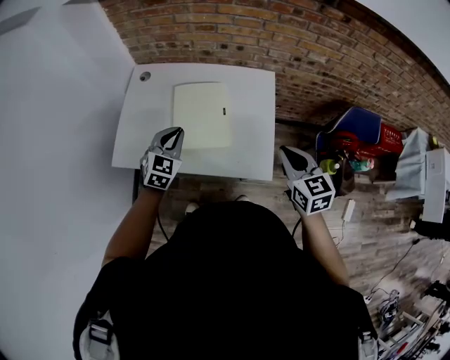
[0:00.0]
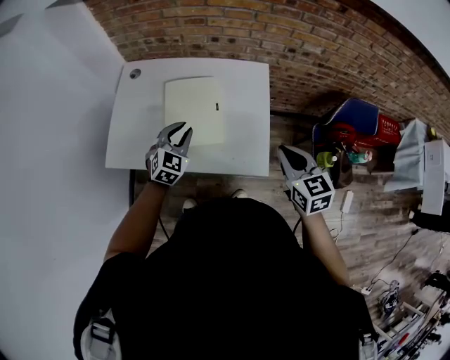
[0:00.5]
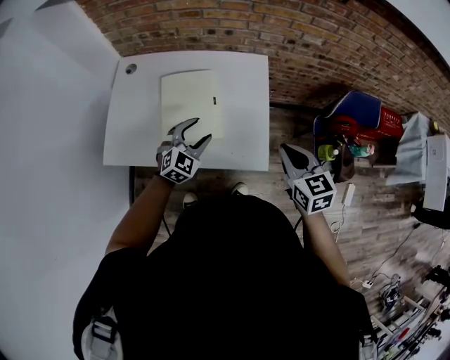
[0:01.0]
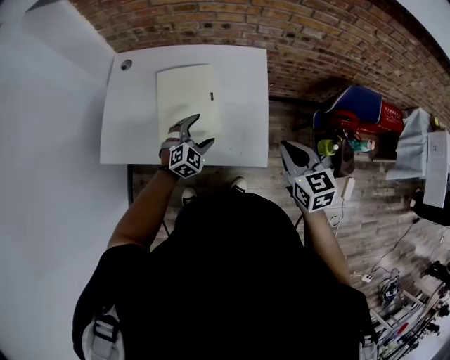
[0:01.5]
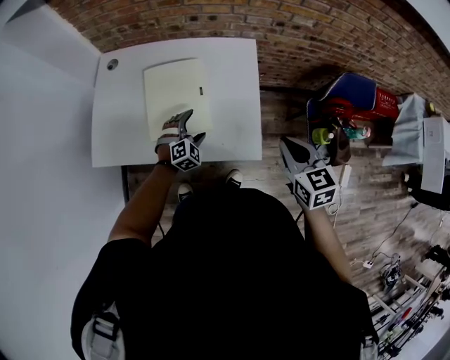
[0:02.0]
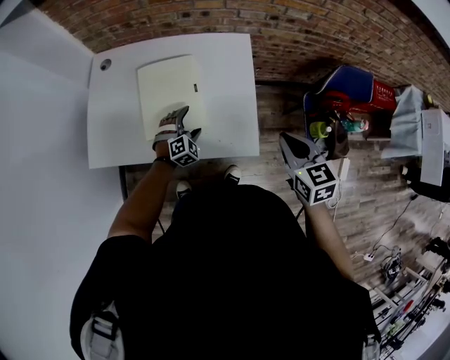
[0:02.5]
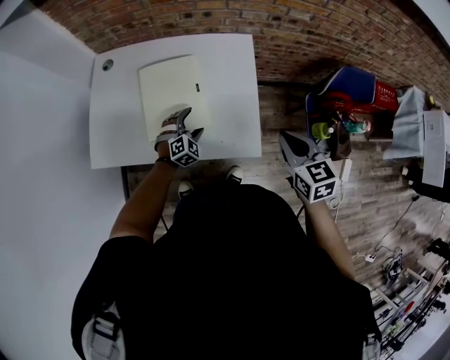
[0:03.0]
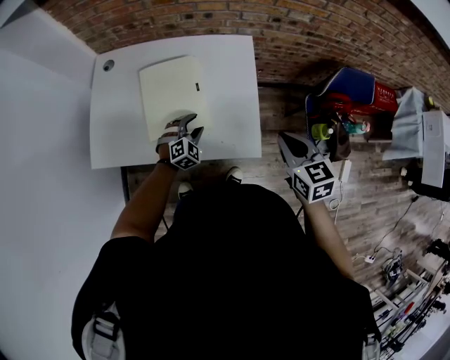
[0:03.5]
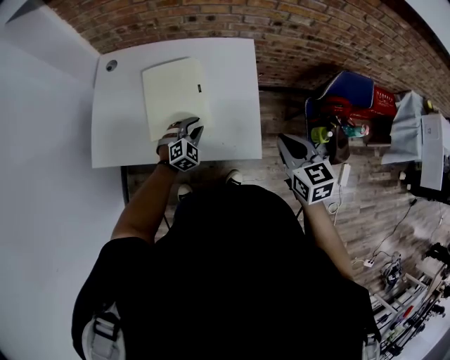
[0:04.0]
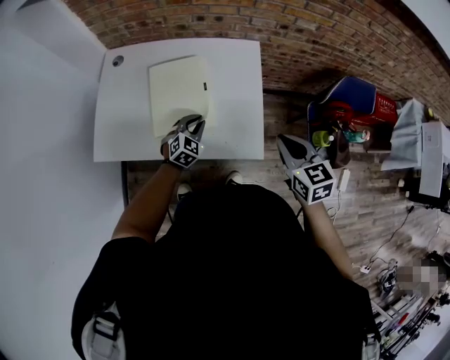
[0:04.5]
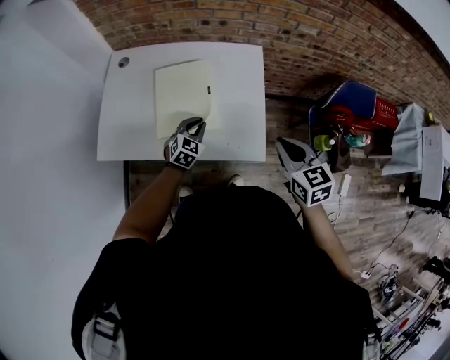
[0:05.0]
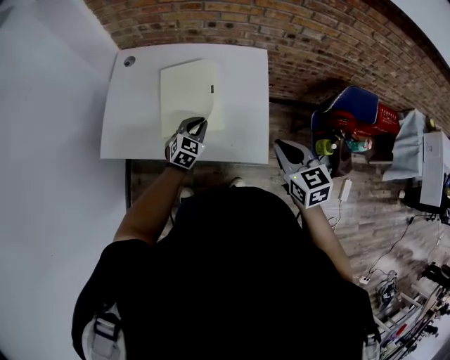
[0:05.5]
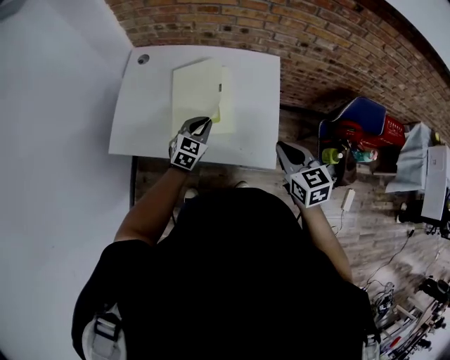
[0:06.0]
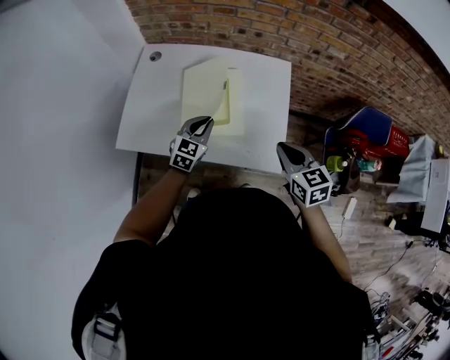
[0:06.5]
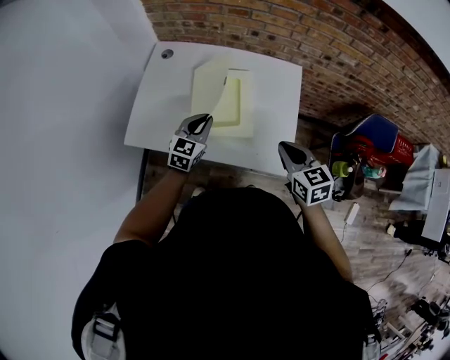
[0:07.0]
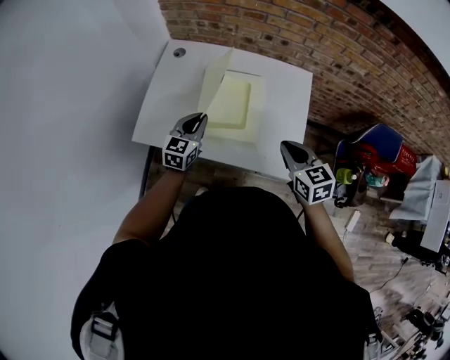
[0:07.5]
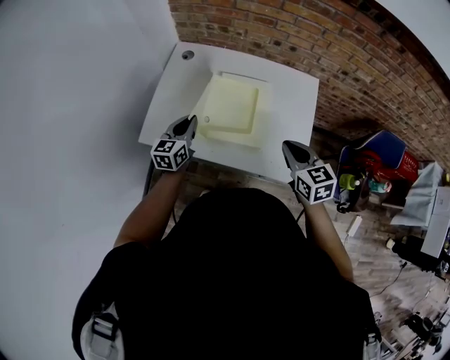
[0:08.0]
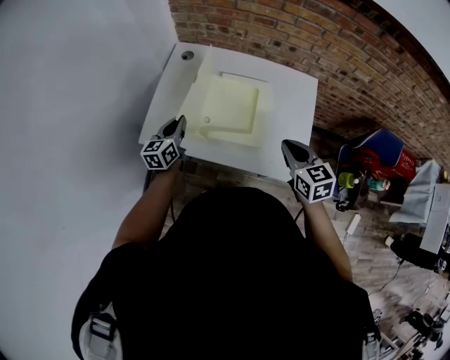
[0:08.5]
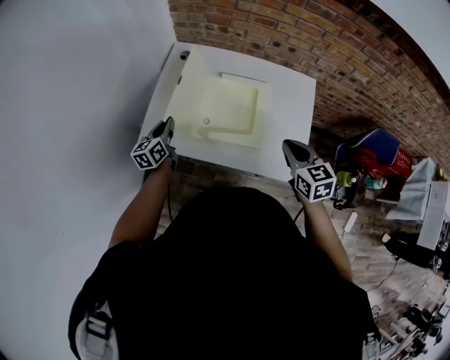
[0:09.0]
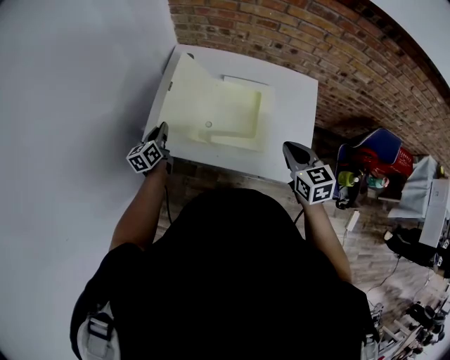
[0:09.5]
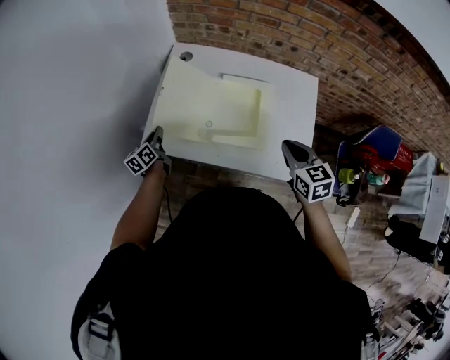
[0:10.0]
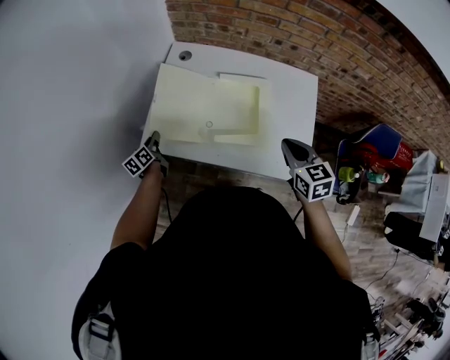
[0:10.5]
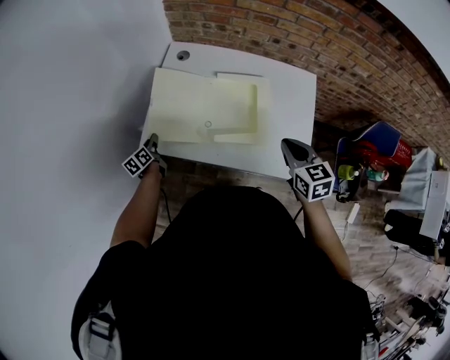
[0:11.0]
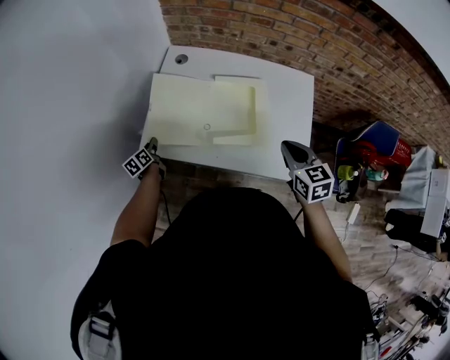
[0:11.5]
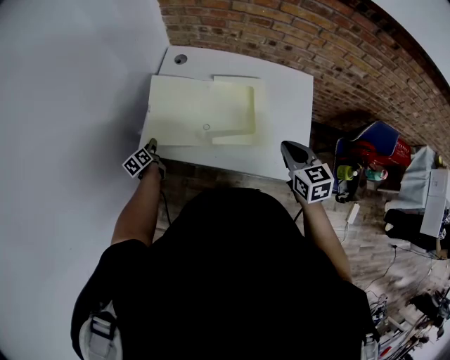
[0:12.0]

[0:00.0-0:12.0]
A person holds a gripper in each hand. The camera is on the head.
0:00.0 to 0:02.0: The left gripper travels downward and to the right by roughly 25 cm, swivels some 30 degrees, and opens up; the right gripper heads to the right, covering roughly 5 cm.
0:02.0 to 0:04.0: The left gripper closes up.
0:04.0 to 0:06.0: The left gripper shifts approximately 10 cm upward and to the left, and rotates some 30 degrees, while the right gripper travels to the left by approximately 5 cm.
0:06.0 to 0:08.0: The left gripper shifts roughly 20 cm to the left, and swivels about 30 degrees, while the right gripper travels to the left and forward by roughly 10 cm.
0:08.0 to 0:10.0: The left gripper is displaced to the left and downward by some 20 cm, and turns by roughly 30 degrees.
0:10.0 to 0:12.0: The left gripper moves downward, approximately 10 cm.

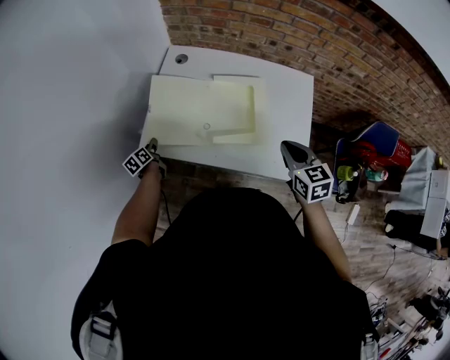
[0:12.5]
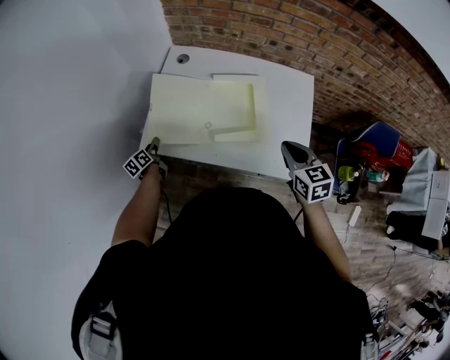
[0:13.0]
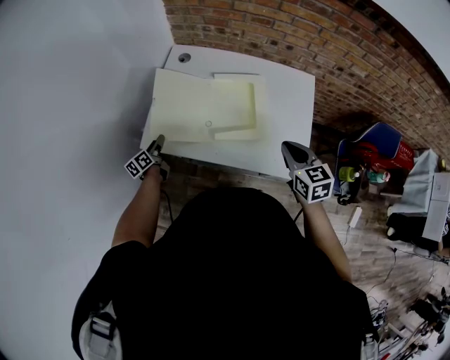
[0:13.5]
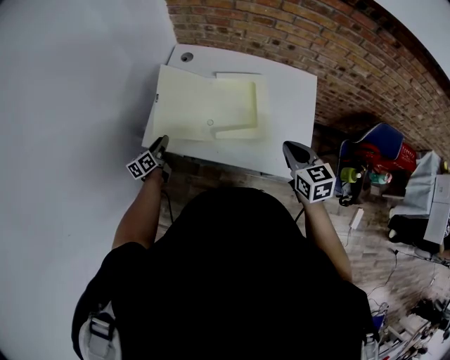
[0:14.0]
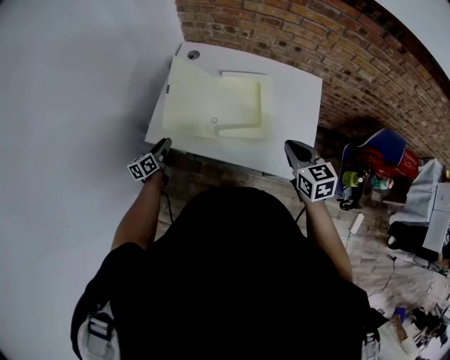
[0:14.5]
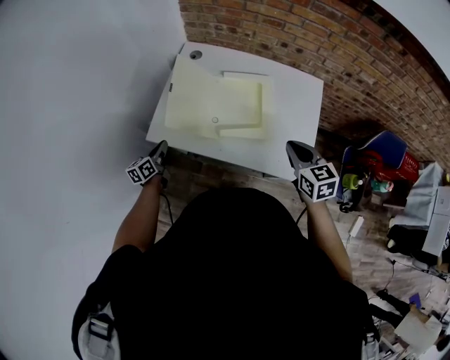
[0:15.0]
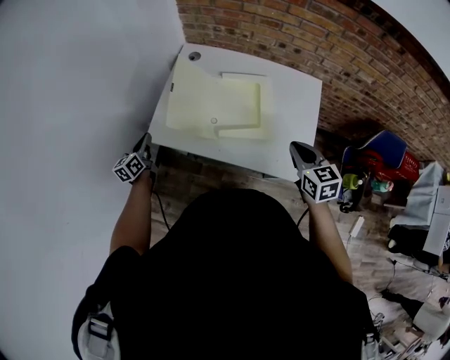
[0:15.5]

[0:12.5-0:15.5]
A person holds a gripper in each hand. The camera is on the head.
0:12.5 to 0:14.0: The left gripper shifts roughly 5 cm upward and to the right.
0:14.0 to 0:15.5: The left gripper shifts some 10 cm upward and to the left.

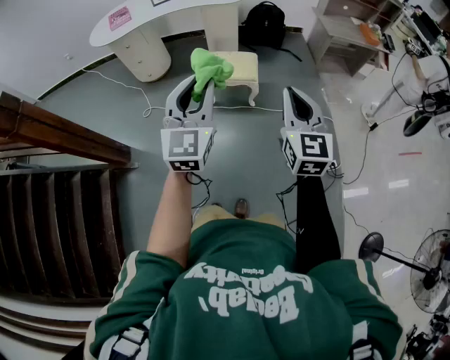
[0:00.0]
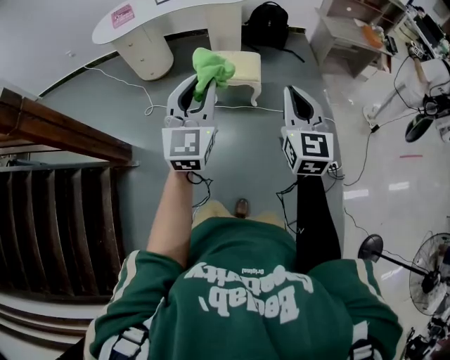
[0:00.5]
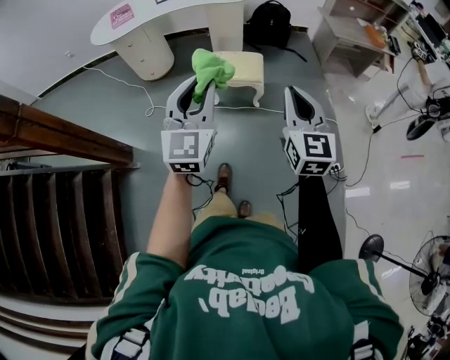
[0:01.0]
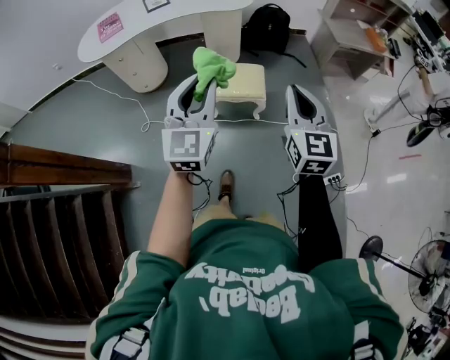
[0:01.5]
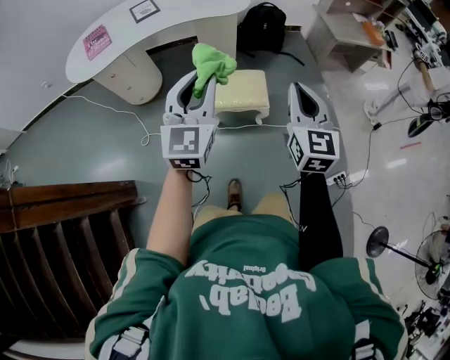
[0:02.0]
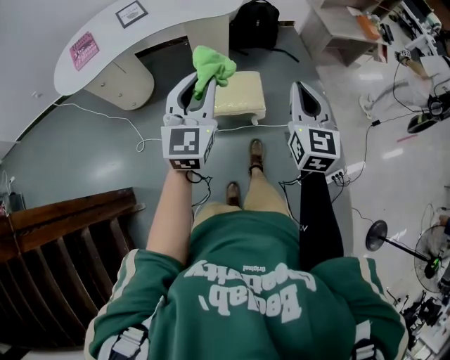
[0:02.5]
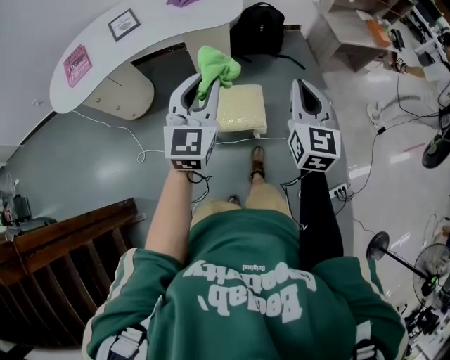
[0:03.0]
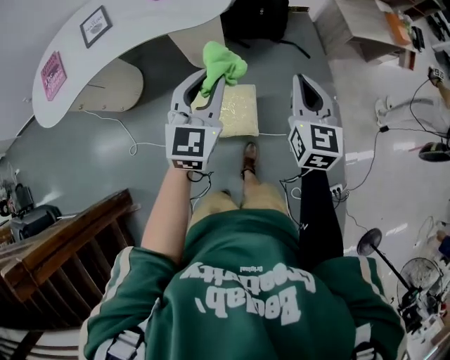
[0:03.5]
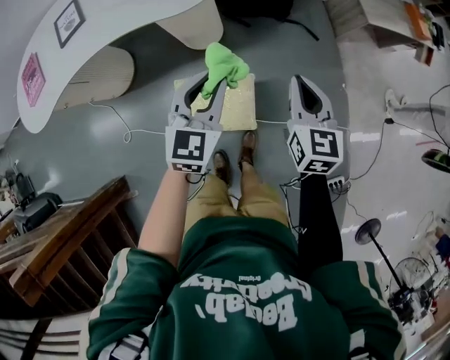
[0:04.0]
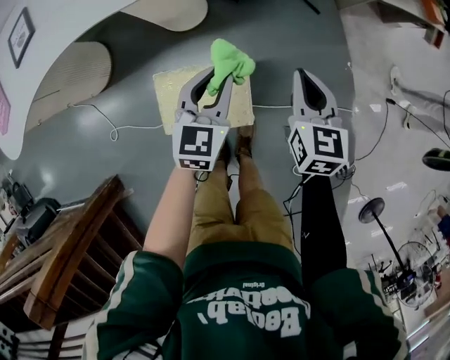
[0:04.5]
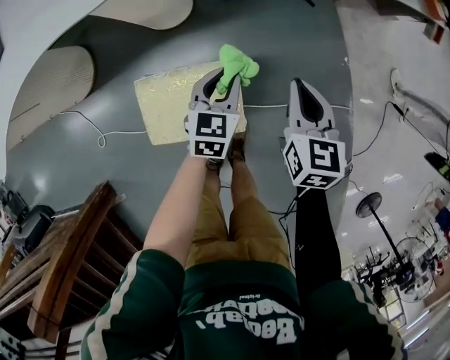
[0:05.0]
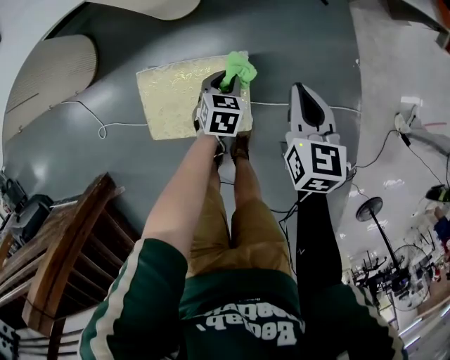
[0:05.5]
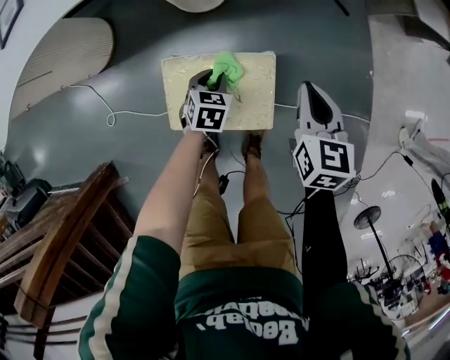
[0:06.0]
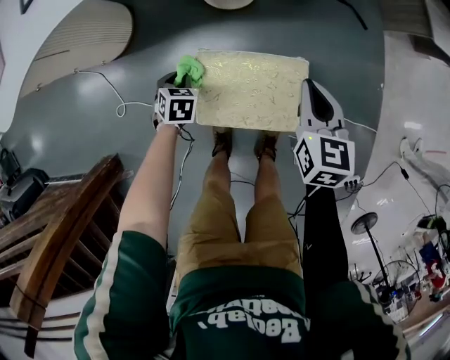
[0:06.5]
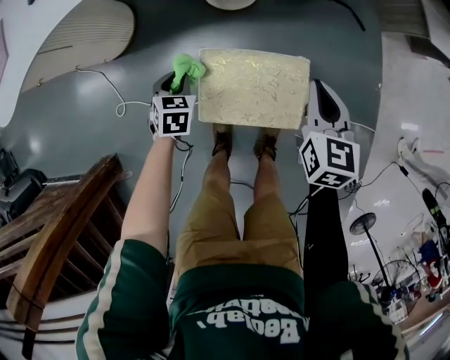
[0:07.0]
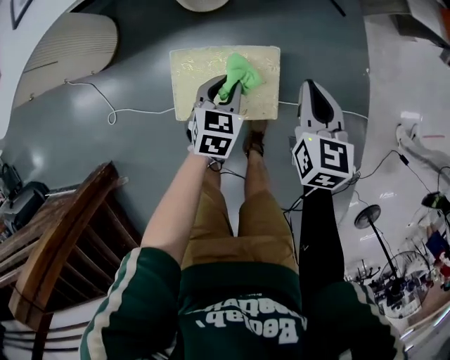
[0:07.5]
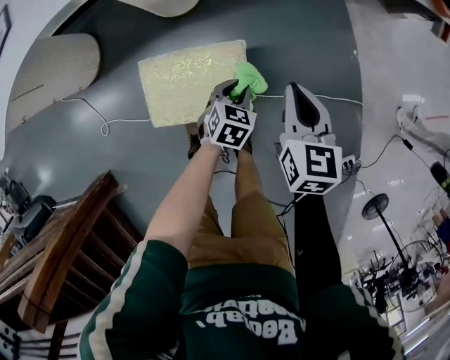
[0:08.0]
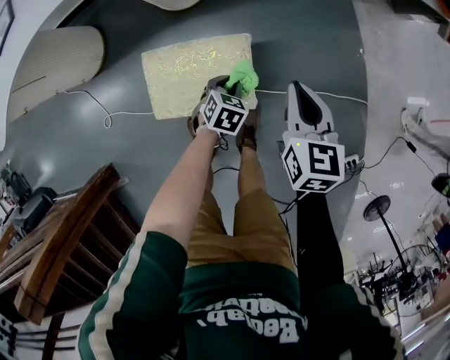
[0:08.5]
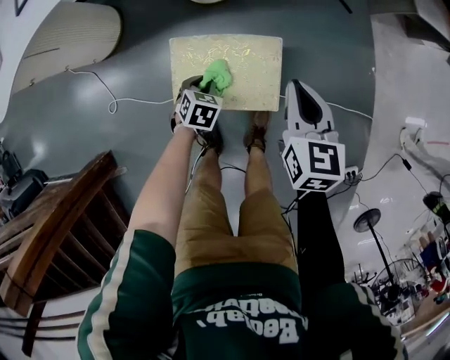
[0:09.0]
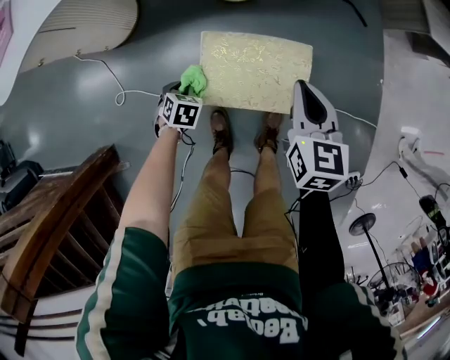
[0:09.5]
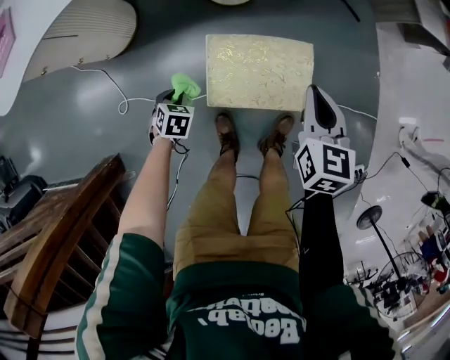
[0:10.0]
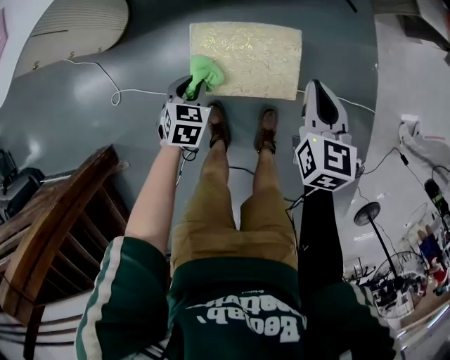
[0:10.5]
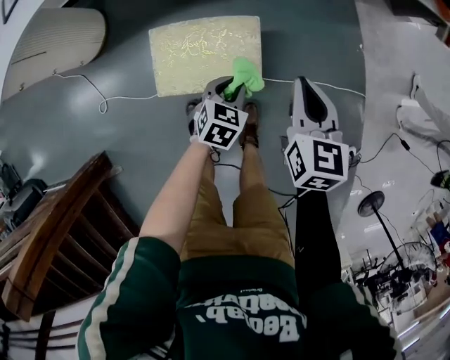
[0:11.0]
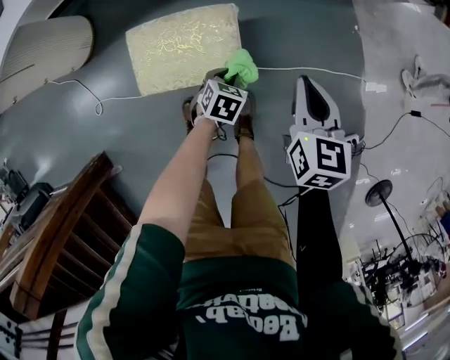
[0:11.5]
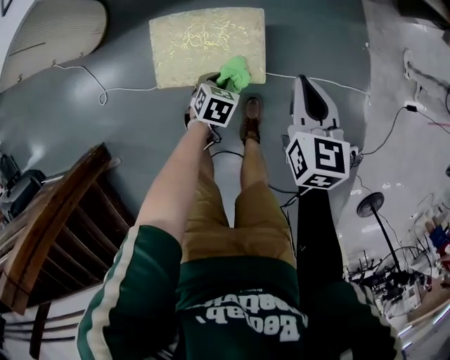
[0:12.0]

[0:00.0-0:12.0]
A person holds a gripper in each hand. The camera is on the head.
0:00.0 to 0:02.0: Both grippers move forward, some 25 cm.
0:02.0 to 0:04.0: The left gripper heads forward, downward and to the right, covering some 40 cm, and swivels about 20 degrees; the right gripper is displaced forward and downward by some 40 cm.
0:04.0 to 0:06.0: The left gripper shifts some 40 cm downward, and tilts its fingers roughly 40 degrees downward; the right gripper travels downward by about 20 cm.
0:06.0 to 0:08.0: The right gripper goes approximately 5 cm backward, and moves roughly 10 cm to the left and comes back. Meanwhile the left gripper moves to the right and backward, roughly 15 cm.
0:08.0 to 0:10.0: The right gripper shifts about 15 cm to the left. The left gripper moves to the left, about 40 cm, and rotates some 20 degrees.
0:10.0 to 0:12.0: The left gripper travels to the right by approximately 30 cm; the right gripper moves to the right, about 15 cm.
